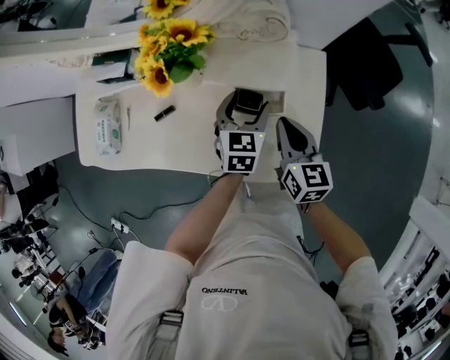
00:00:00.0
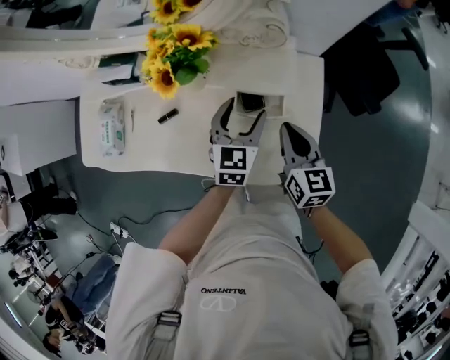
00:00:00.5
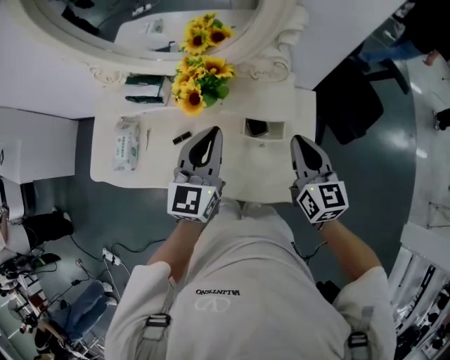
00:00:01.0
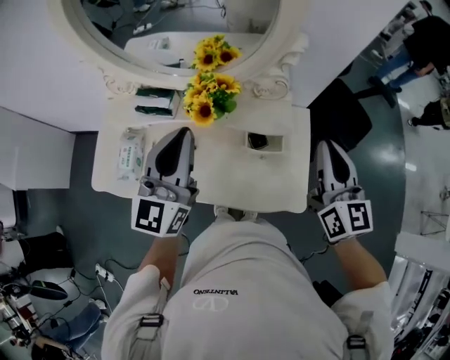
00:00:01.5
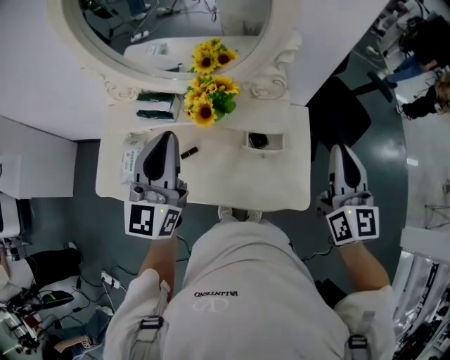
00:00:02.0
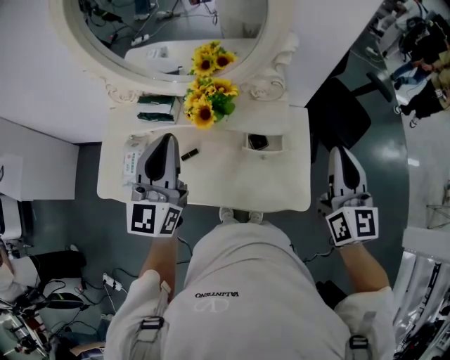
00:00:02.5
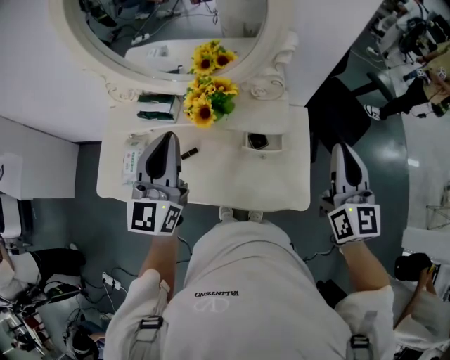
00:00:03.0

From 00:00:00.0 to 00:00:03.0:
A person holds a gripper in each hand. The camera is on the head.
From 00:00:00.0 to 00:00:01.5: The right gripper travels upward by about 25 cm, and changes its angle by approximately 30 degrees; the left gripper shifts roughly 40 cm upward and to the left, tips its fingers upward by about 40 degrees, and closes its fingers.
From 00:00:01.5 to 00:00:03.0: The grippers move only a little.

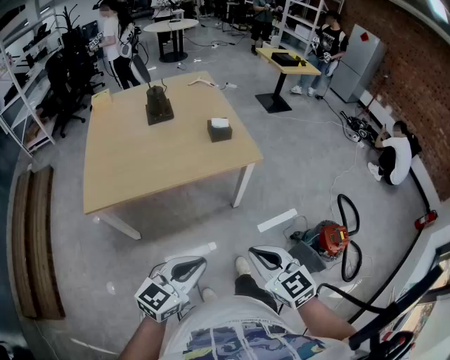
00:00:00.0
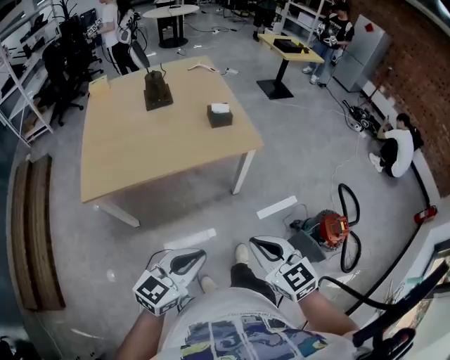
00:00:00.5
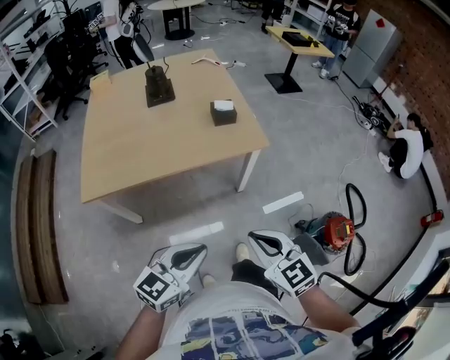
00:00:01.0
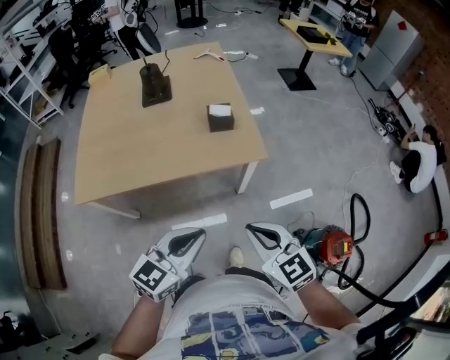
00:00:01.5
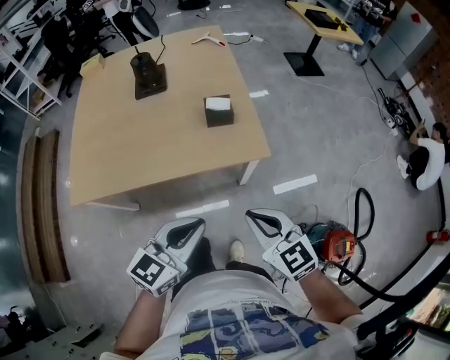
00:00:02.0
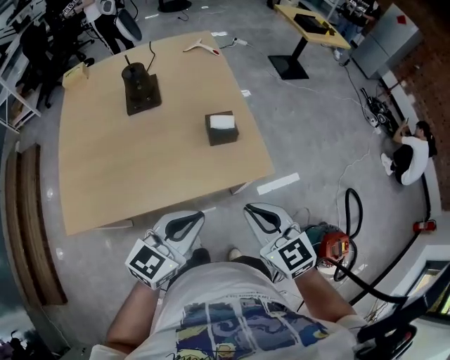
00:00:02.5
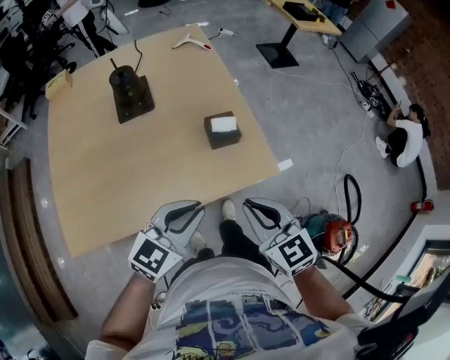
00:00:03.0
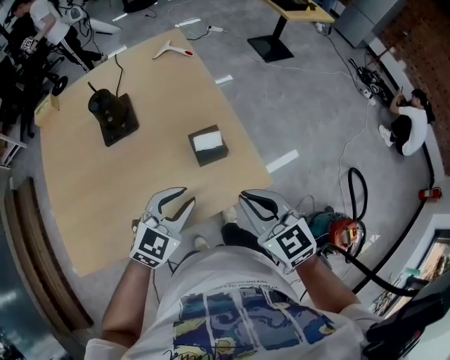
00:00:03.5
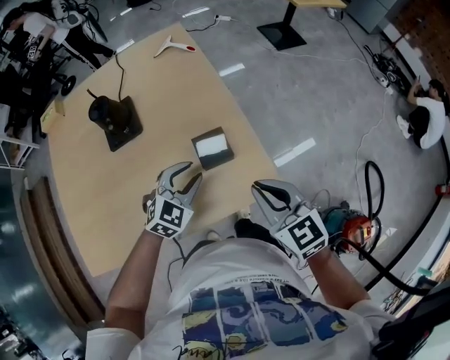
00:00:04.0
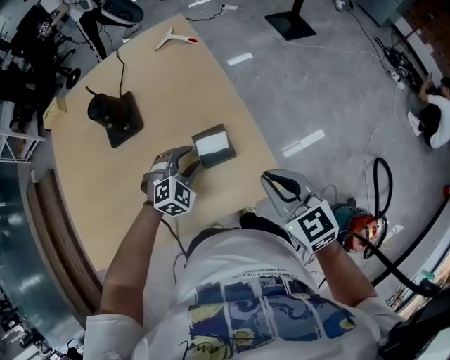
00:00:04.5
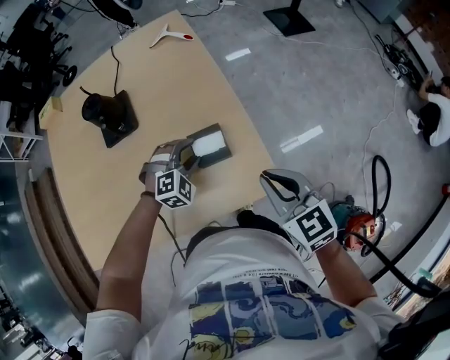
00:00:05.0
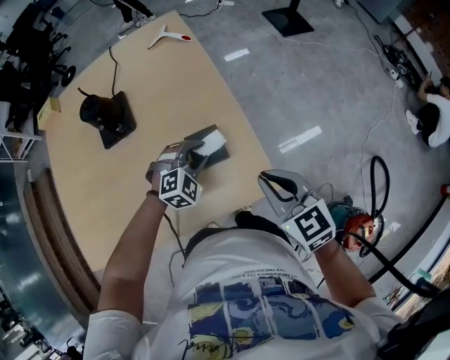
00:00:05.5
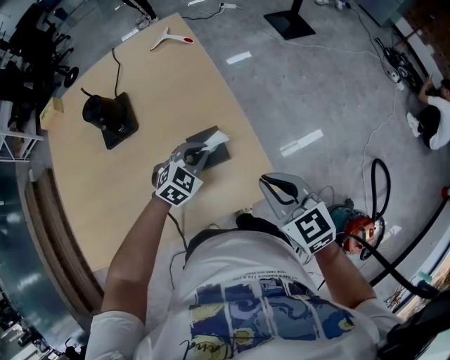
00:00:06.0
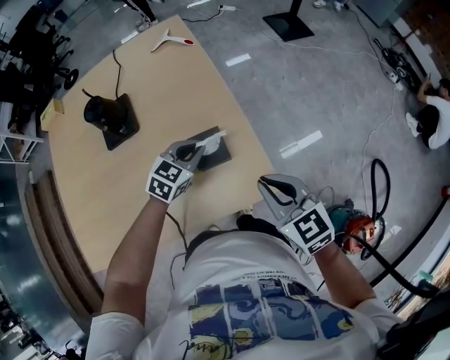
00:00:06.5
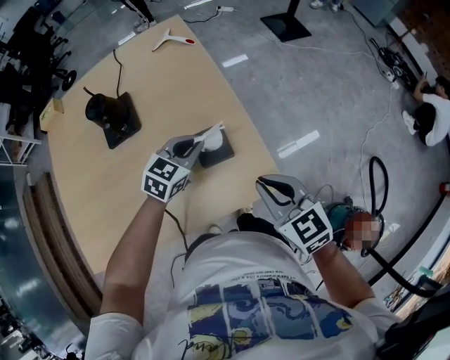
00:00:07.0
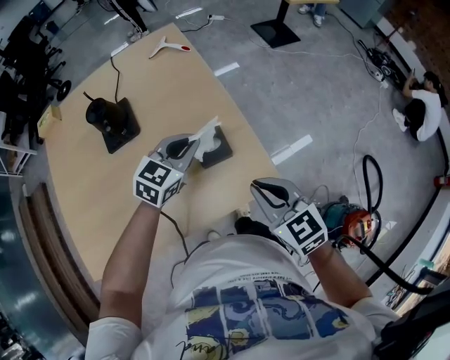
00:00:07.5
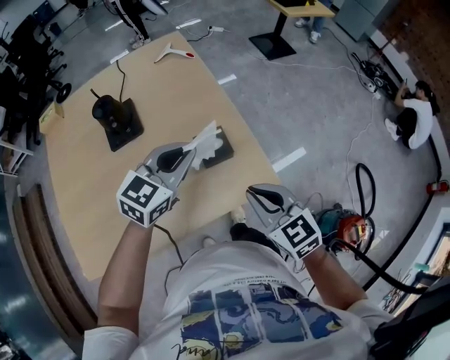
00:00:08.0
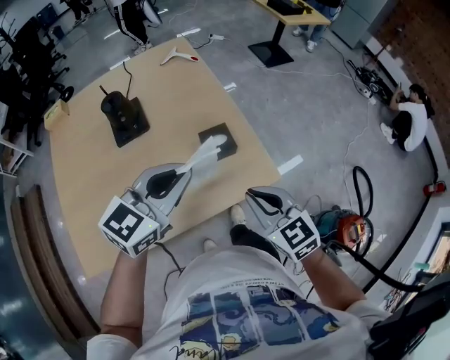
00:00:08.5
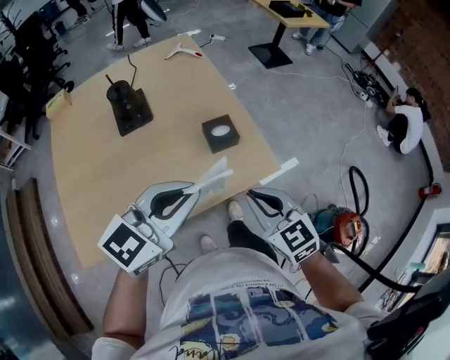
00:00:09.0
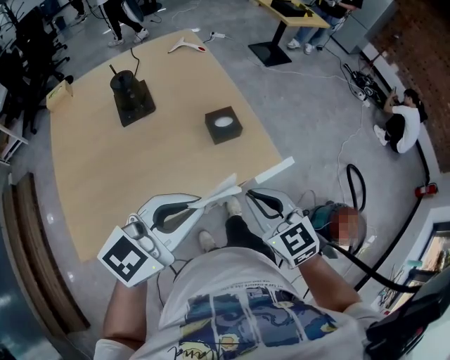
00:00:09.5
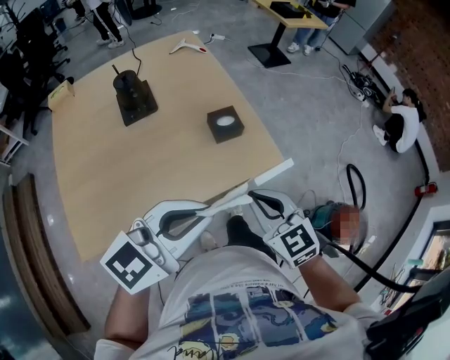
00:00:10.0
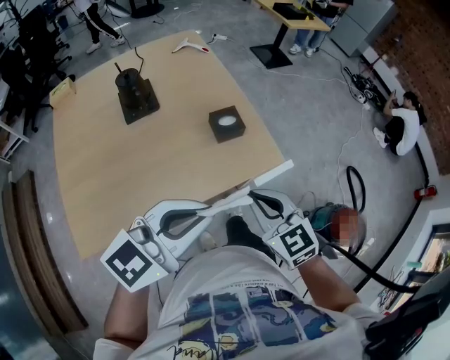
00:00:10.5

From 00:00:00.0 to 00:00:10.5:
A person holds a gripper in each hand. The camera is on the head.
From 00:00:00.0 to 00:00:02.0: The two grippers go roughly 25 cm forward.
From 00:00:02.0 to 00:00:04.0: The two grippers go some 30 cm forward. The left gripper turns by approximately 40 degrees, and opens.
From 00:00:04.0 to 00:00:06.5: The right gripper changes place by approximately 5 cm. The left gripper moves forward, roughly 10 cm, and closes up.
From 00:00:06.5 to 00:00:08.5: The left gripper moves upward and backward, roughly 30 cm, and swivels some 20 degrees. The right gripper travels backward and to the left by about 15 cm.
From 00:00:08.5 to 00:00:10.5: The left gripper heads backward, covering about 20 cm; the right gripper goes approximately 10 cm backward.

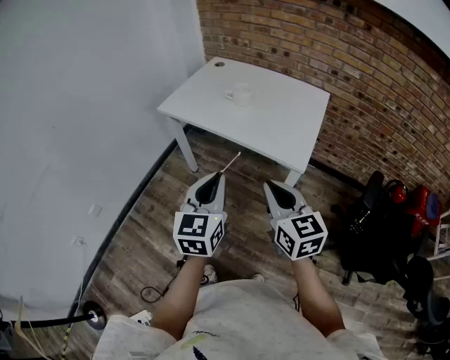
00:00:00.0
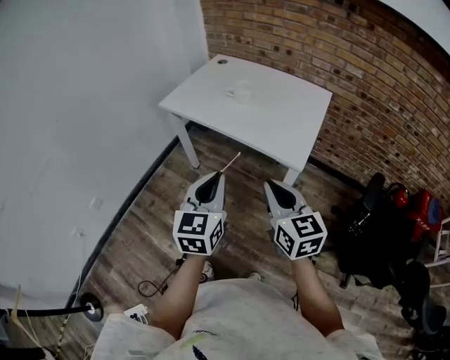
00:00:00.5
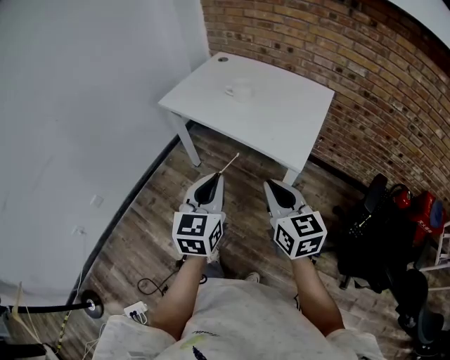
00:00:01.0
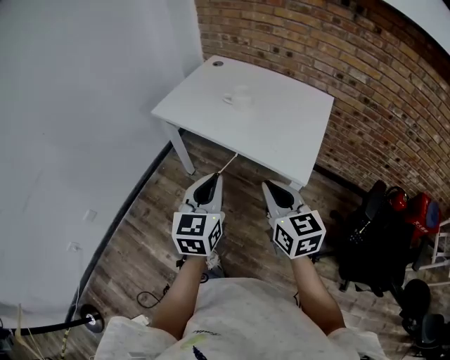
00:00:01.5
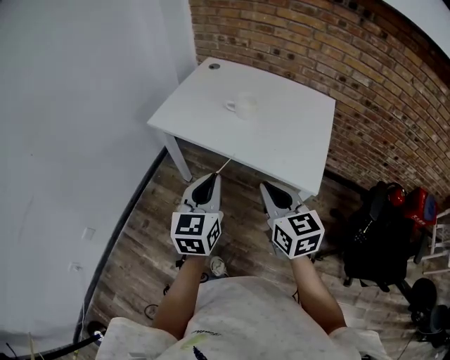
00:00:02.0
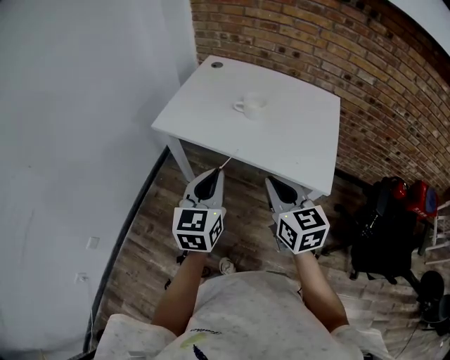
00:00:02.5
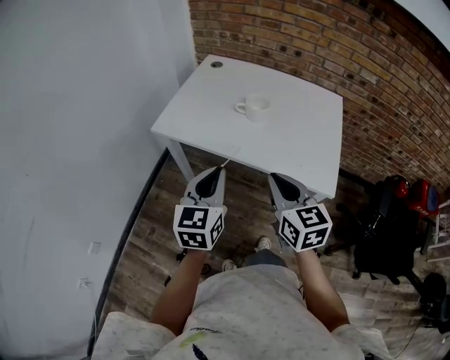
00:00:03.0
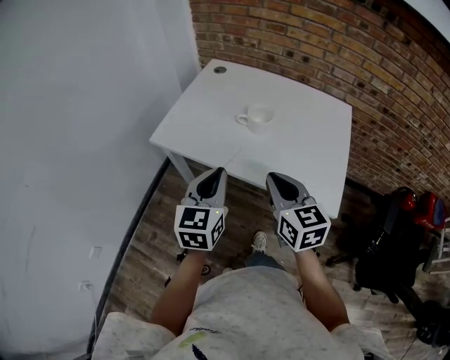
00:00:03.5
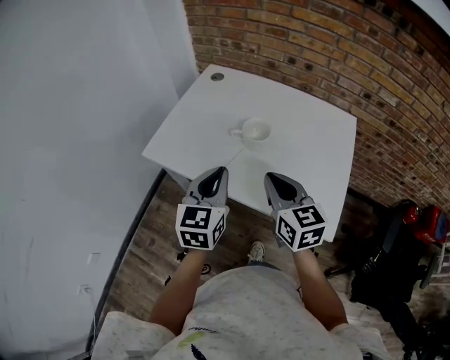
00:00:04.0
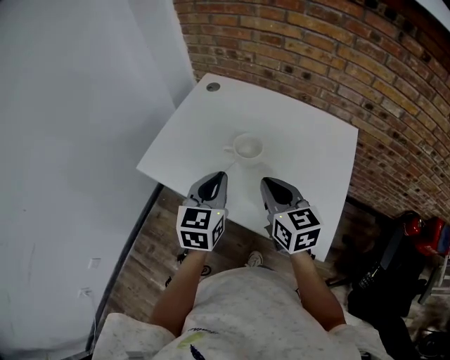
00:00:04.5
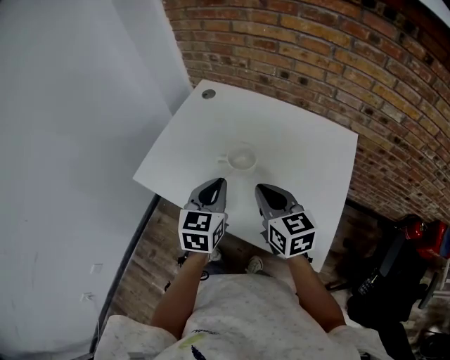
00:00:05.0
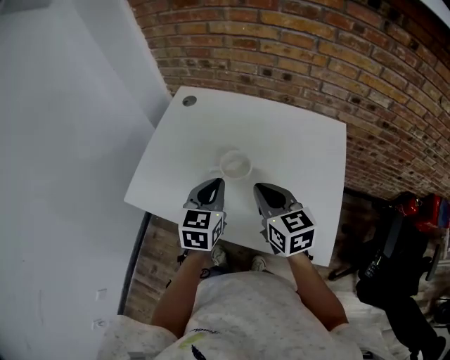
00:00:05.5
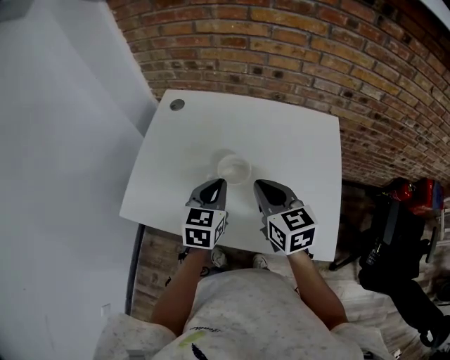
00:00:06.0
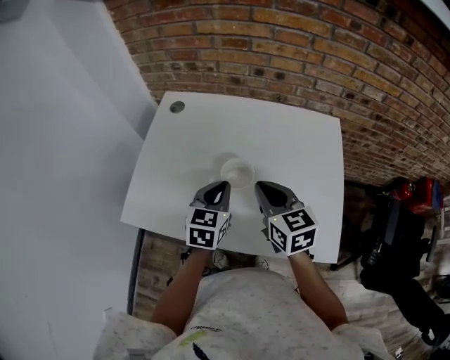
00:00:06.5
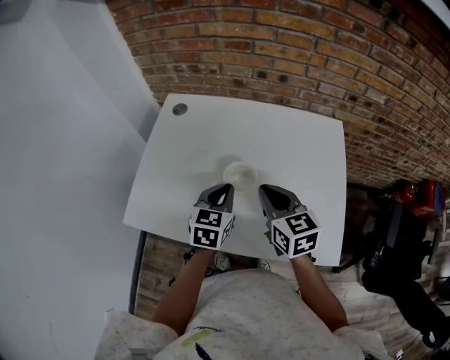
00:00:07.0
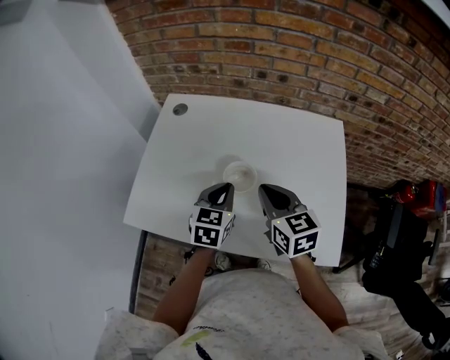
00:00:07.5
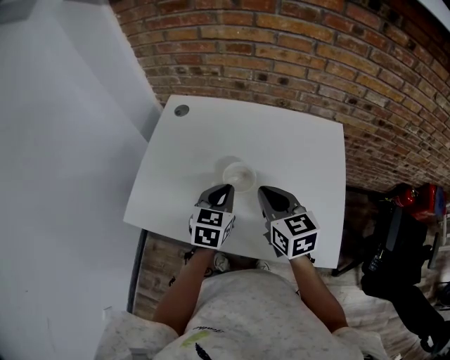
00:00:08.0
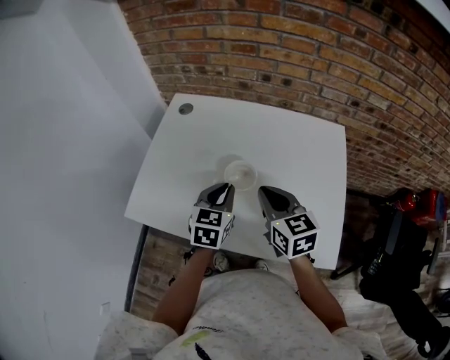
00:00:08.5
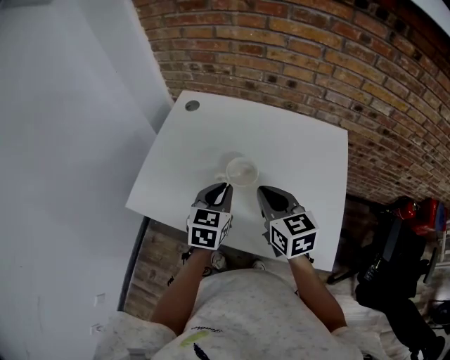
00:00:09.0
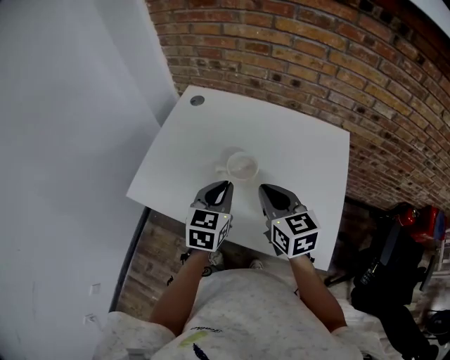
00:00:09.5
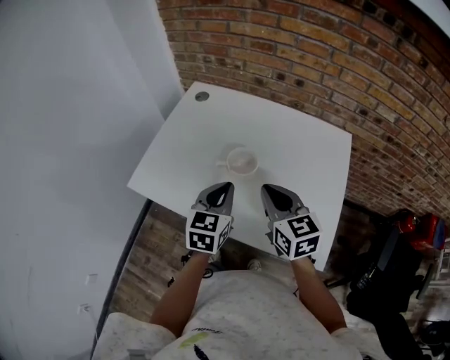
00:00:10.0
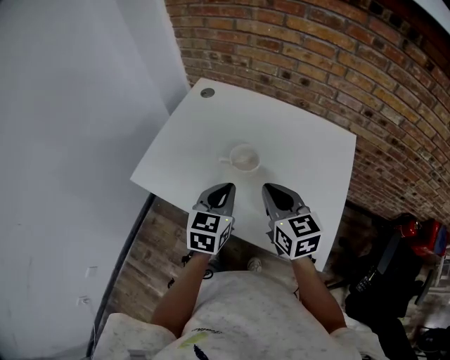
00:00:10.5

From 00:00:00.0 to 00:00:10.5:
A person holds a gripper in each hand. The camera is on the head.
From 00:00:00.0 to 00:00:02.0: The grippers both shift forward by about 15 cm.
From 00:00:02.0 to 00:00:04.0: Both grippers move forward, approximately 25 cm.
From 00:00:04.0 to 00:00:06.5: The grippers both shift forward by approximately 20 cm. The left gripper rotates roughly 20 degrees.
From 00:00:06.5 to 00:00:08.5: Neither gripper changes place.
From 00:00:08.5 to 00:00:10.5: The grippers both shift backward by roughly 5 cm.

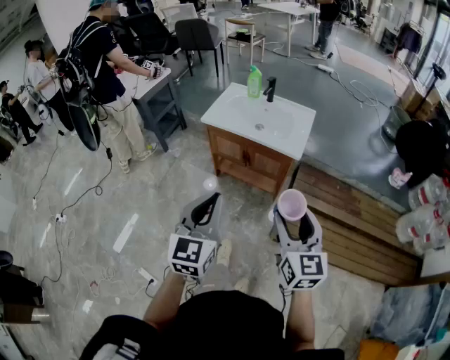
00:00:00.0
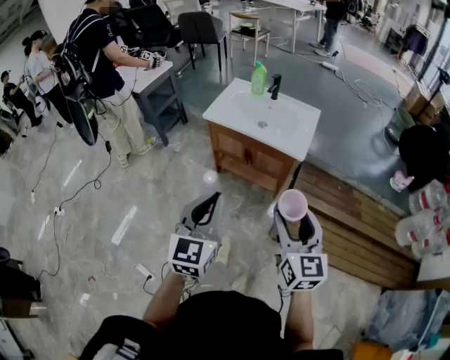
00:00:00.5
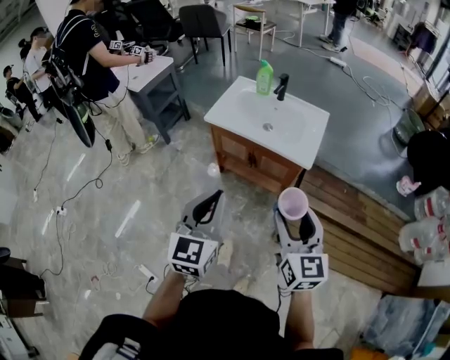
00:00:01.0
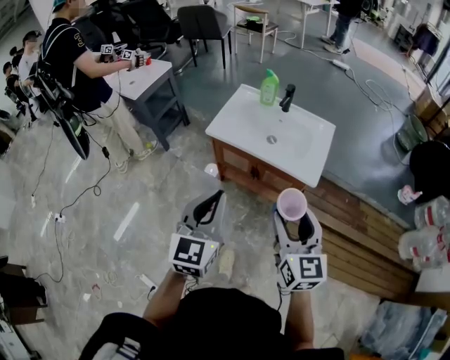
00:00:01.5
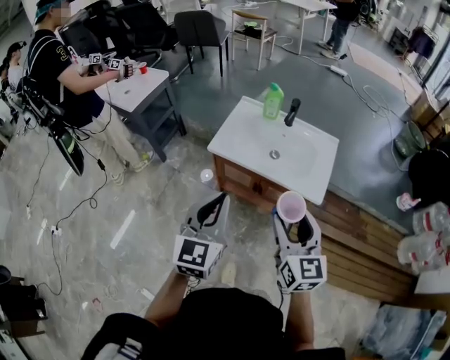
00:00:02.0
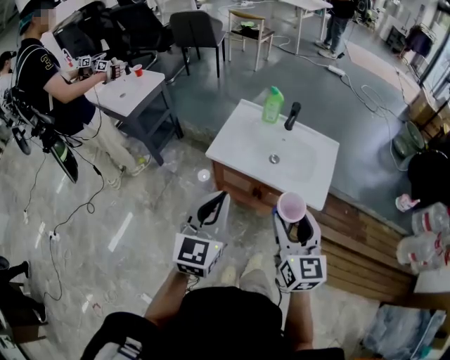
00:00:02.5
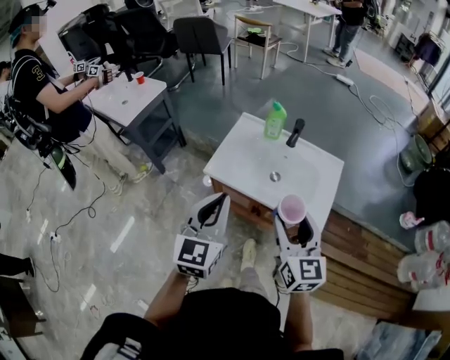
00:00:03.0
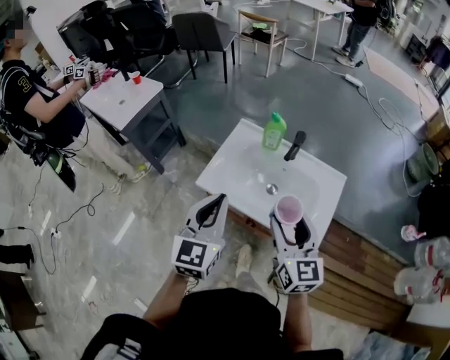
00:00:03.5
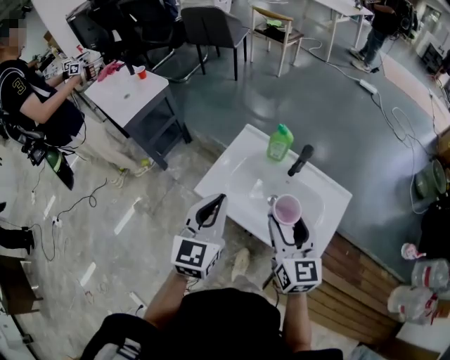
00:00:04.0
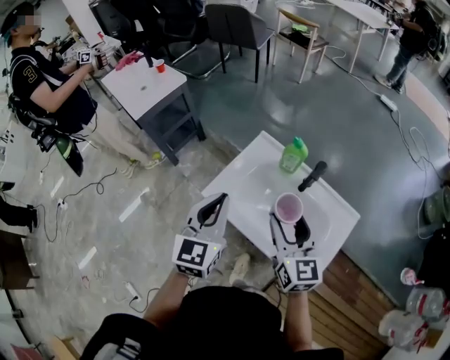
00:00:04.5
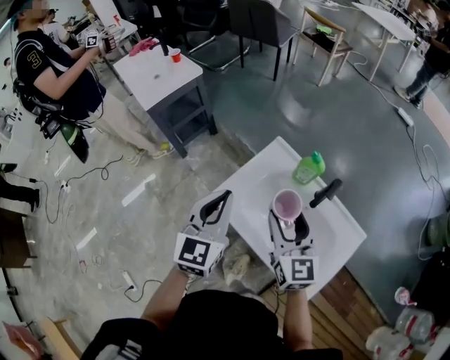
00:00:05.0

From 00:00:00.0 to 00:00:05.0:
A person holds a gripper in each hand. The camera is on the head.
From 00:00:00.0 to 00:00:02.5: The right gripper heads forward and to the left, covering approximately 35 cm. Meanwhile the left gripper heads forward, covering roughly 30 cm.
From 00:00:02.5 to 00:00:05.0: The grippers both shift forward by roughly 35 cm. The left gripper changes its angle by roughly 20 degrees; the right gripper changes its angle by some 20 degrees.
